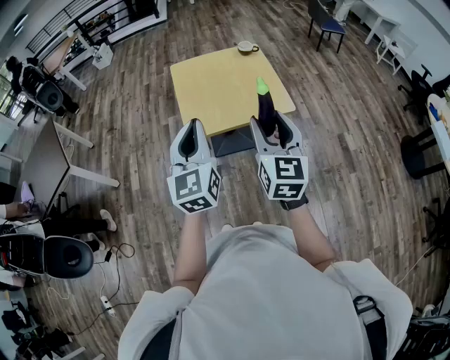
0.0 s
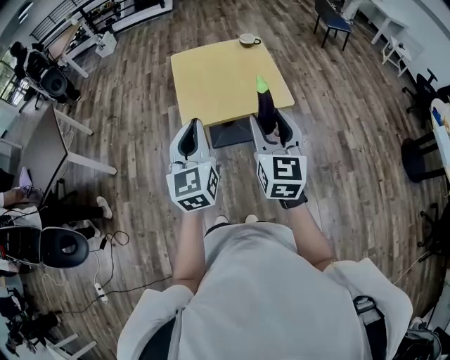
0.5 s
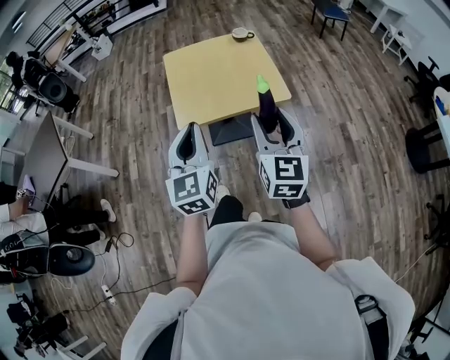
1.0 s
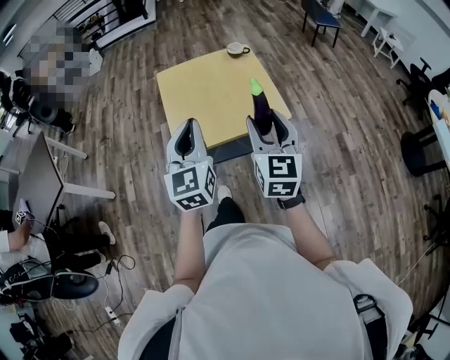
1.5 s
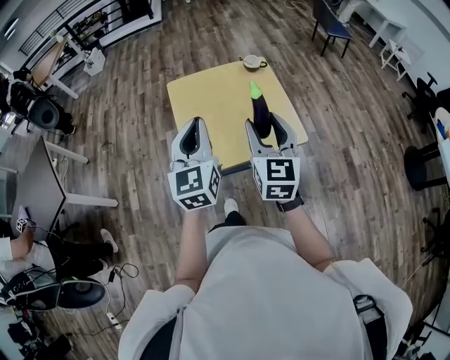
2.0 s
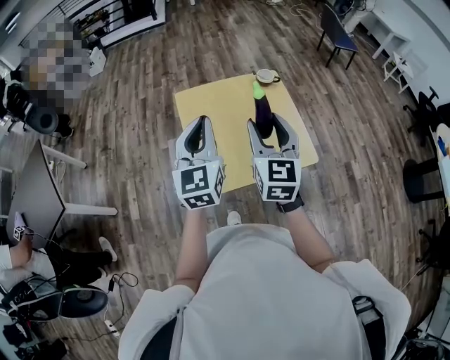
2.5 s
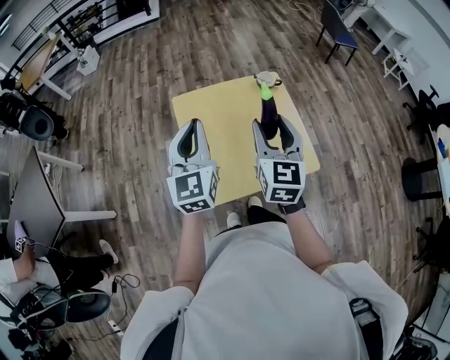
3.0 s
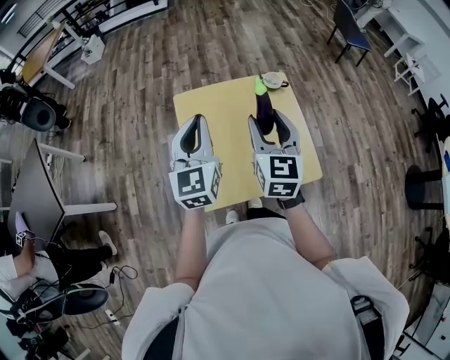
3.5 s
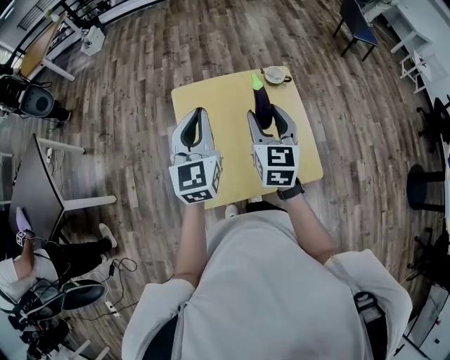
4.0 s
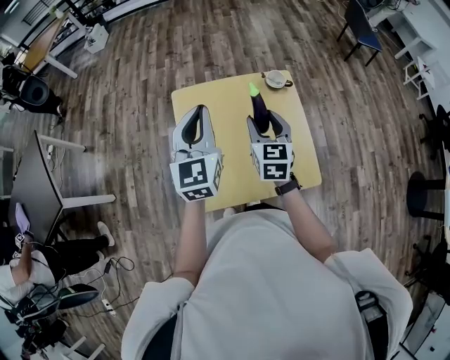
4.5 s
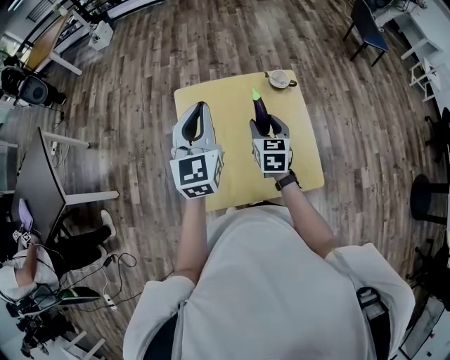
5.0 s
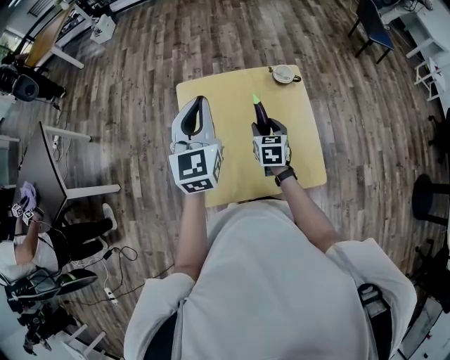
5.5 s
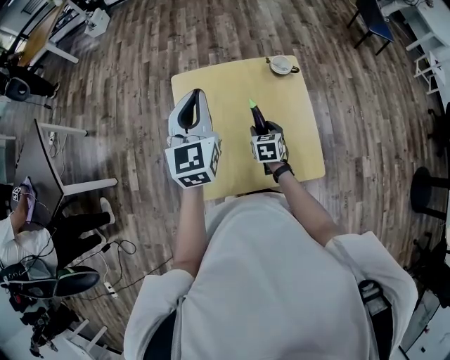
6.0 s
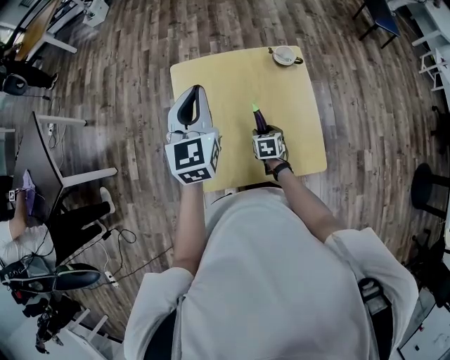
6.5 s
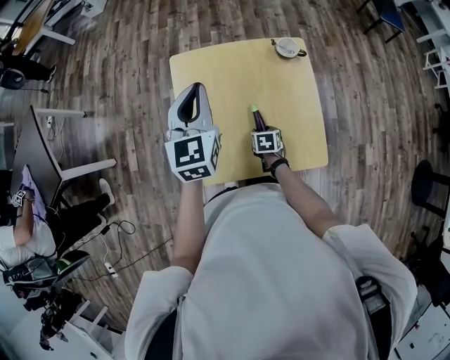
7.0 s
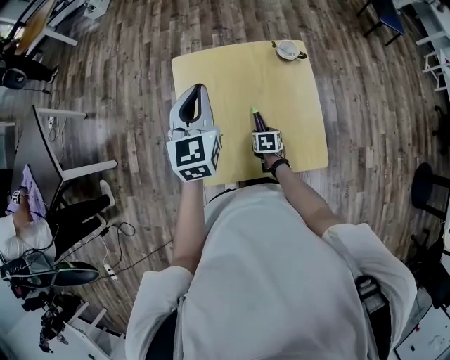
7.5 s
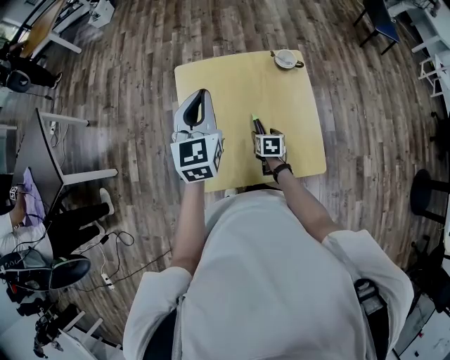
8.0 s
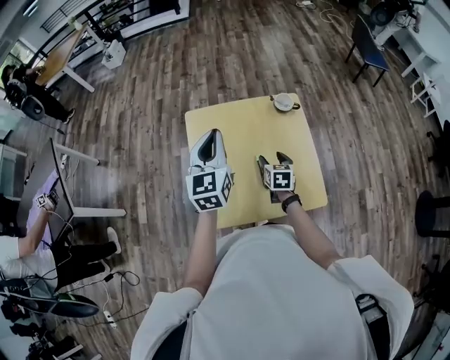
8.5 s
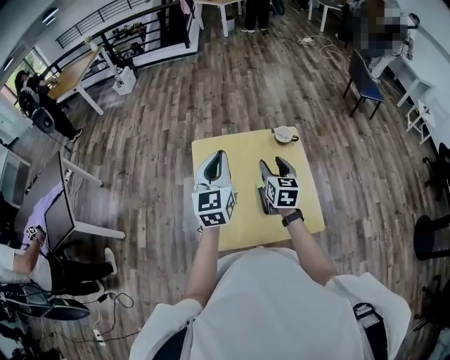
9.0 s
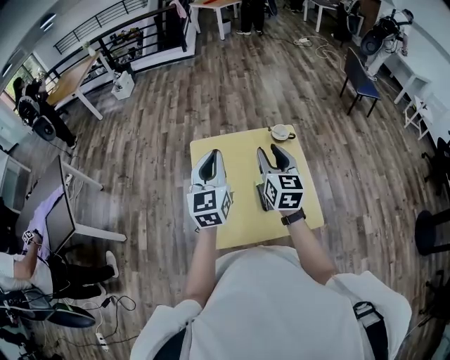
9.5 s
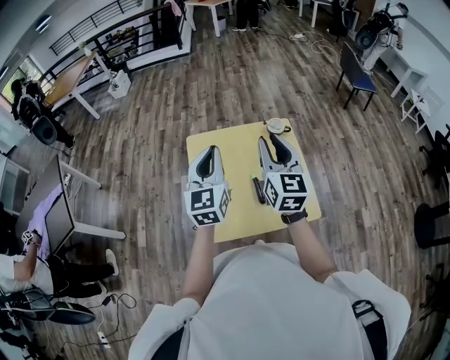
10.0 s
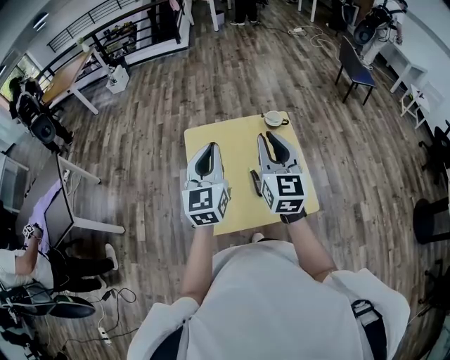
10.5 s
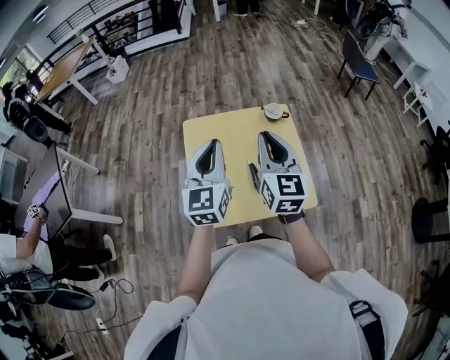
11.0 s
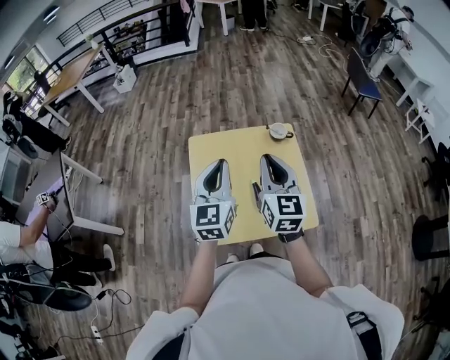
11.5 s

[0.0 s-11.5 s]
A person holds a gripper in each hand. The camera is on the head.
0.0 to 2.0 s: Both grippers travel together forward, about 20 cm.
2.0 to 4.0 s: The two grippers go about 25 cm forward.
4.0 to 6.0 s: The left gripper moves forward, about 5 cm. Meanwhile the right gripper heads downward, covering roughly 25 cm, and tilts its fingers roughly 30 degrees downward.
6.0 to 7.5 s: The right gripper moves downward and backward, approximately 15 cm, and swivels approximately 20 degrees.
7.5 to 9.5 s: The left gripper travels upward and backward by roughly 10 cm; the right gripper is displaced upward by roughly 40 cm, and tilts its fingers some 50 degrees upward.
9.5 to 11.5 s: The right gripper heads backward, covering some 5 cm, and closes.

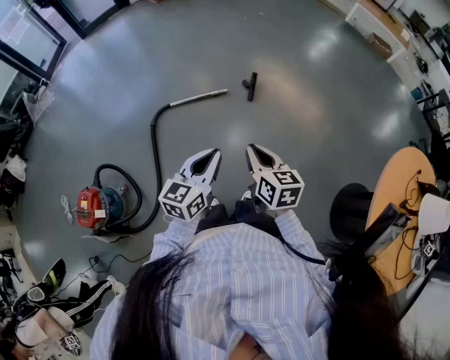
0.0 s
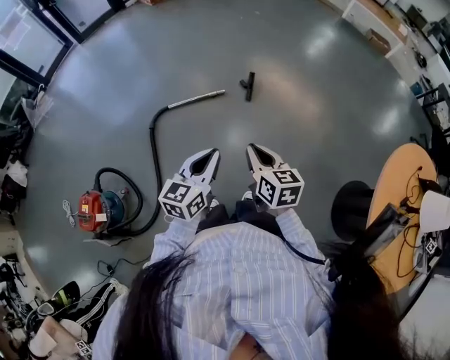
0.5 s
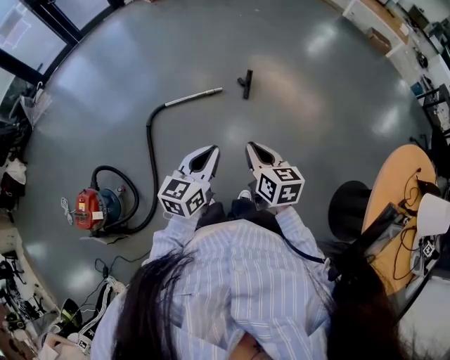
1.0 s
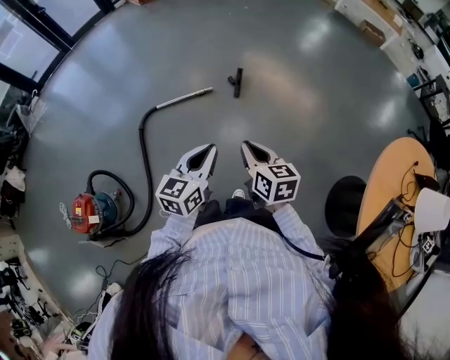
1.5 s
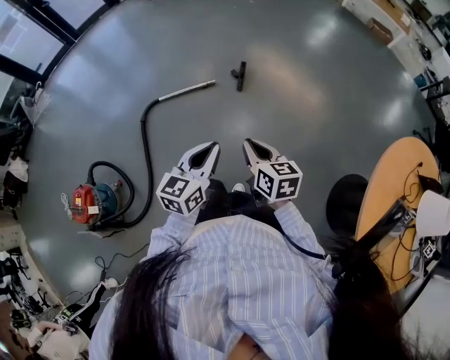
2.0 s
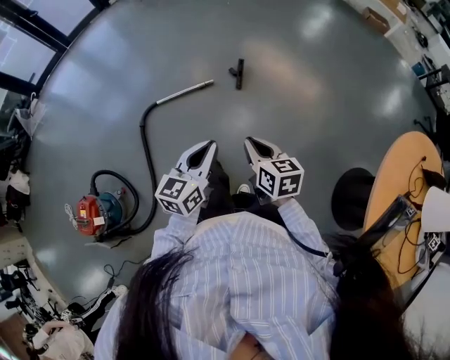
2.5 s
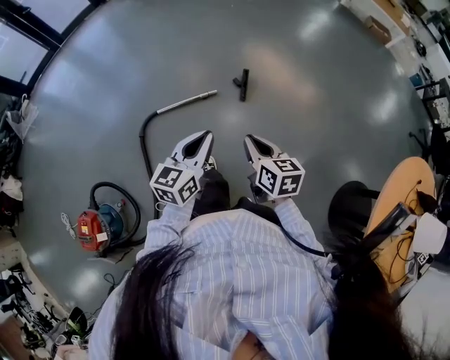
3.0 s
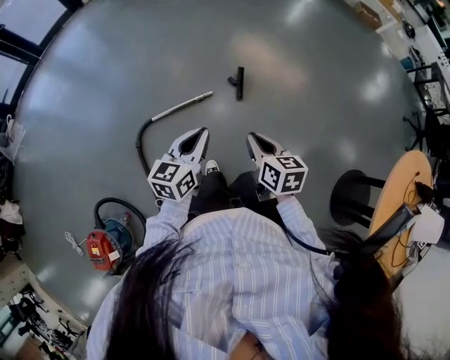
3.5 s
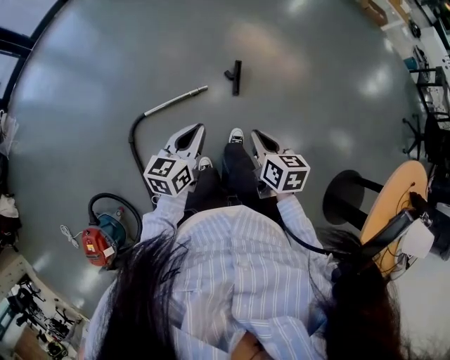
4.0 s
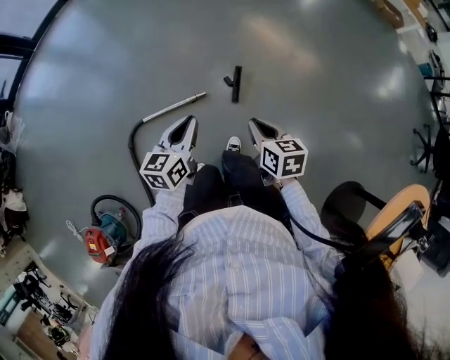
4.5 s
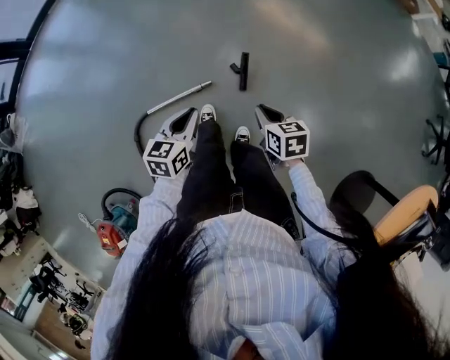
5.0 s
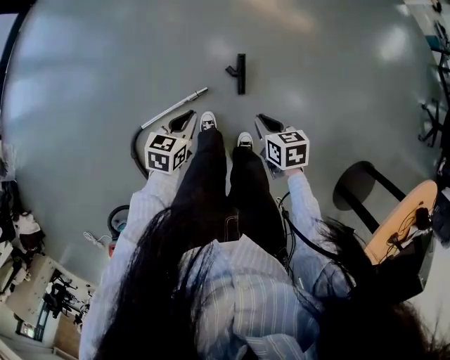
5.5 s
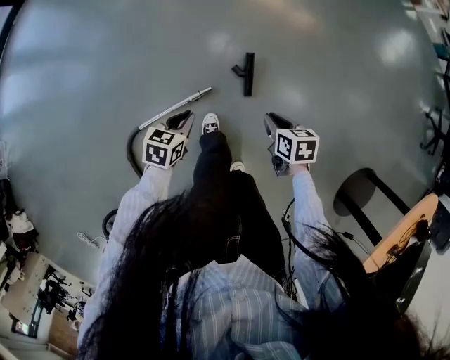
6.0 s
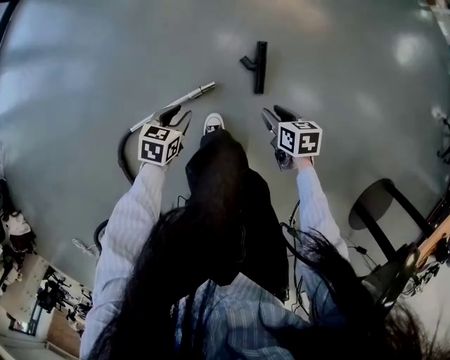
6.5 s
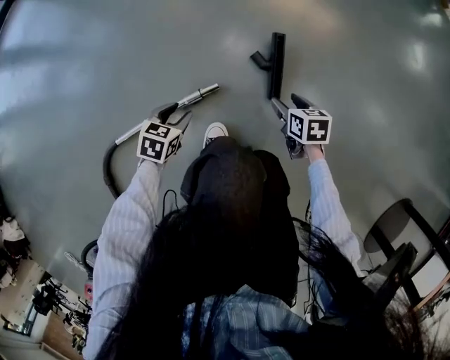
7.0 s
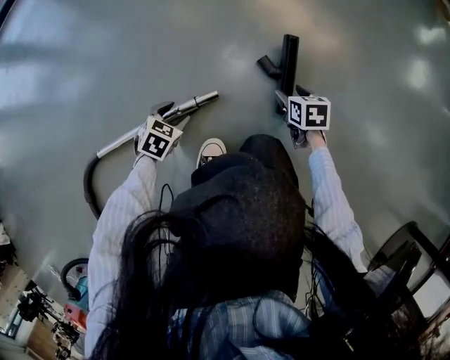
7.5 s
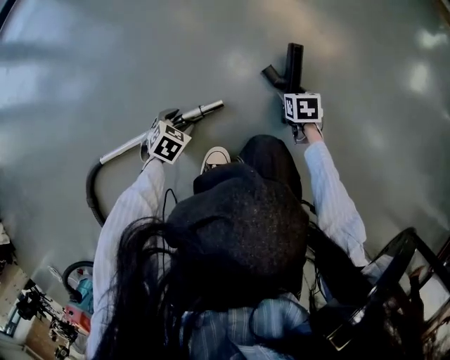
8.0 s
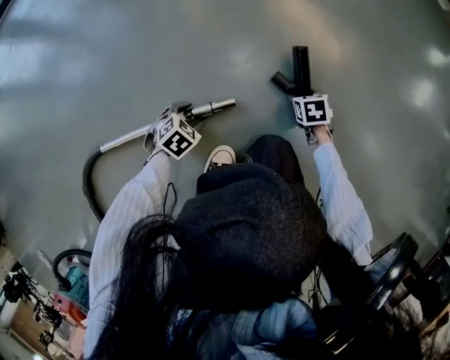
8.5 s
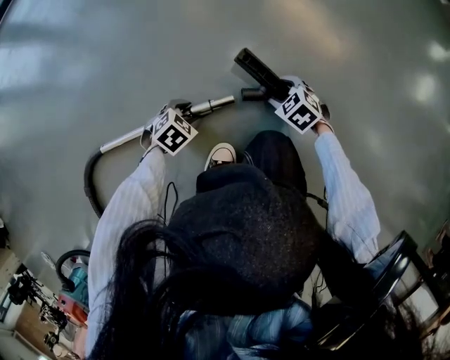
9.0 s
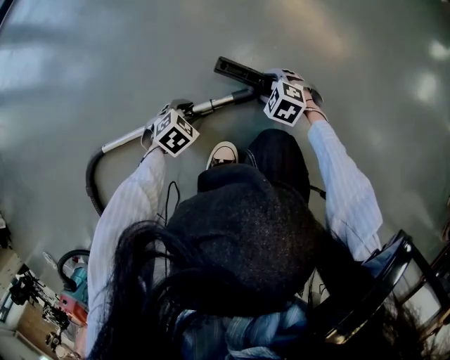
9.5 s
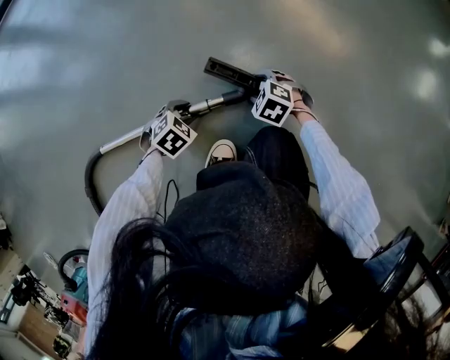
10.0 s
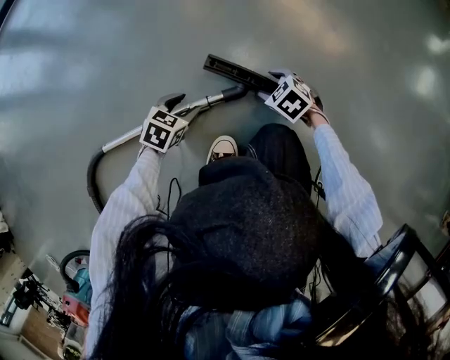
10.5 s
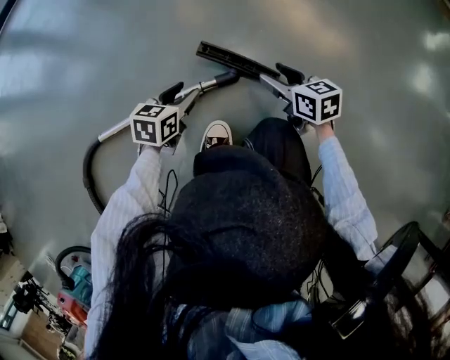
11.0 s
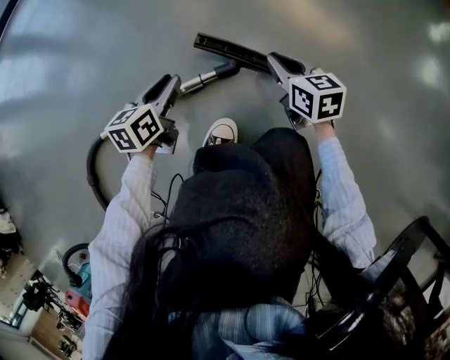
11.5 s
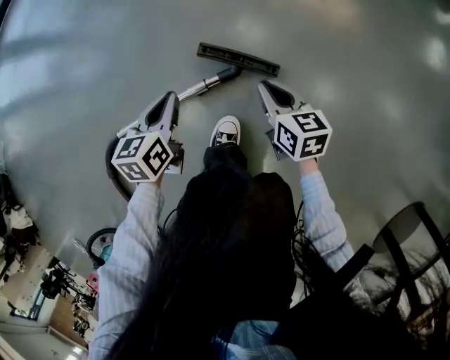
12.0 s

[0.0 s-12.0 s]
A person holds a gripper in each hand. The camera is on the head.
0.0 to 2.0 s: Both grippers travel together to the right, approximately 10 cm.
2.0 to 4.0 s: The right gripper is displaced forward by some 35 cm. Meanwhile the left gripper is displaced forward and to the left by about 40 cm.
4.0 to 6.0 s: The left gripper is displaced downward and forward by about 40 cm, and turns by about 40 degrees. Meanwhile the right gripper moves forward and downward, some 40 cm, and rotates roughly 20 degrees.
6.0 to 8.0 s: Both grippers travel together downward, some 50 cm. The right gripper changes its angle by some 20 degrees, and opens up; the left gripper changes its angle by approximately 30 degrees, and opens its fingers.
8.0 to 10.0 s: The right gripper shifts approximately 15 cm to the left, and rotates around the line of its fingers by some 60 degrees, counterclockwise from behind.
10.0 to 12.0 s: Both grippers travel together upward, about 25 cm. The left gripper changes its angle by roughly 60 degrees, and closes its fingers. The right gripper rotates around the line of its fingers by roughly 70 degrees, clockwise from behind, and closes its fingers.

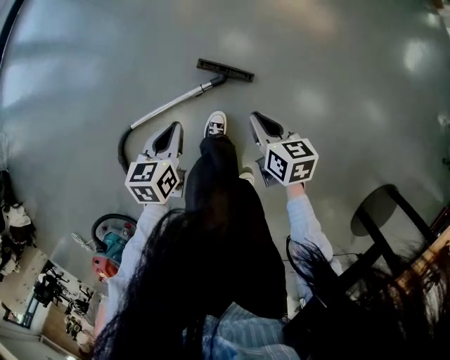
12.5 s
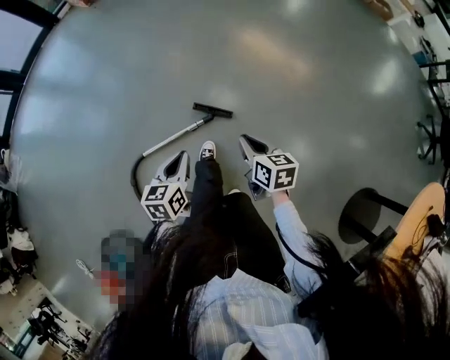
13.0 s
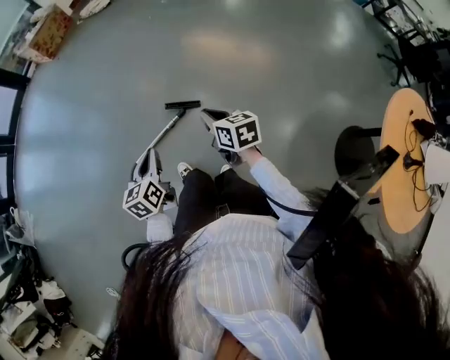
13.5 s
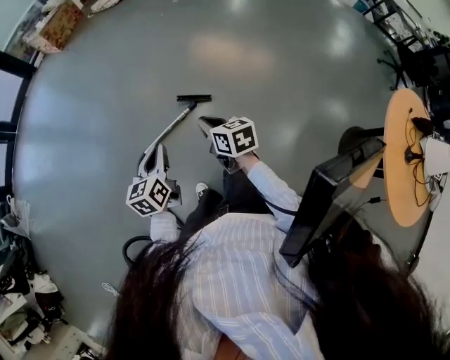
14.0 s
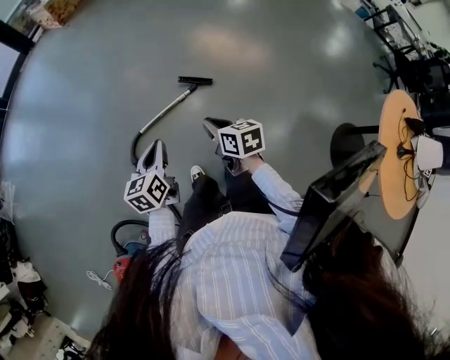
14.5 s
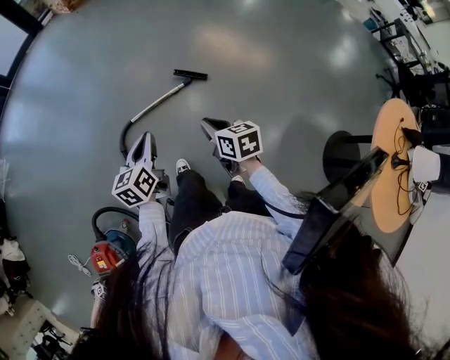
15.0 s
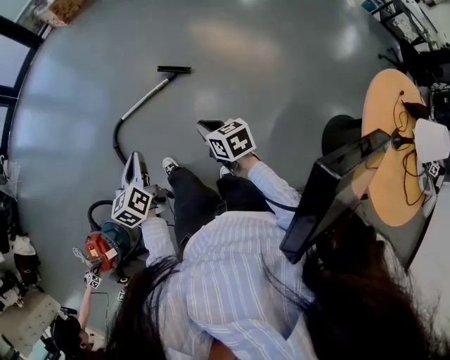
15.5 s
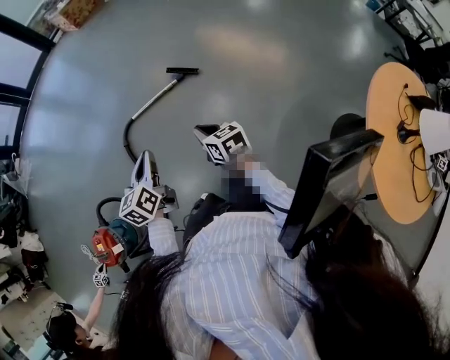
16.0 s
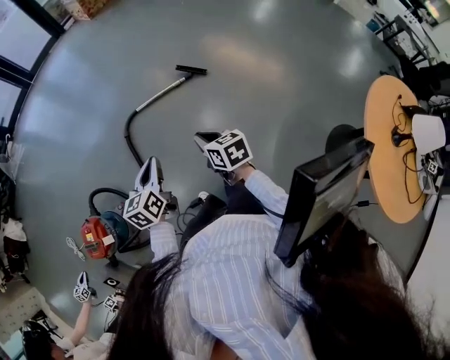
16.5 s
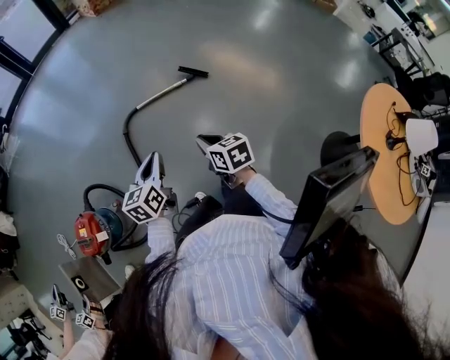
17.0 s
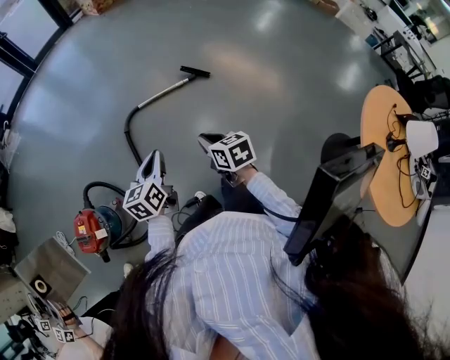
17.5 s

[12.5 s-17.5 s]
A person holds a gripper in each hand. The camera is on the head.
12.5 to 15.0 s: The left gripper moves upward and backward, about 50 cm, and swivels roughly 20 degrees. The right gripper shifts approximately 60 cm upward, backward and to the left.
15.0 to 17.5 s: Both grippers travel together backward, approximately 30 cm.
